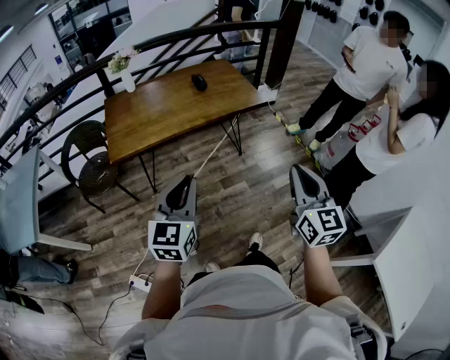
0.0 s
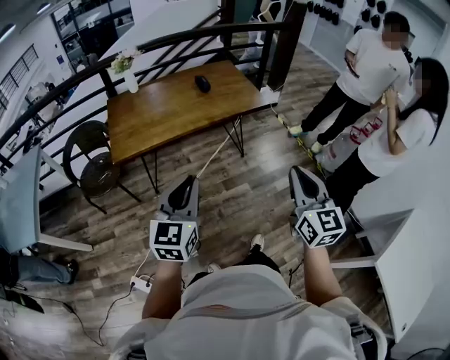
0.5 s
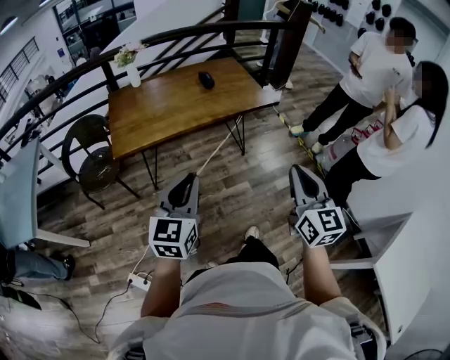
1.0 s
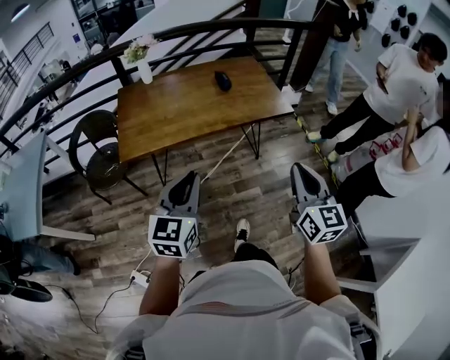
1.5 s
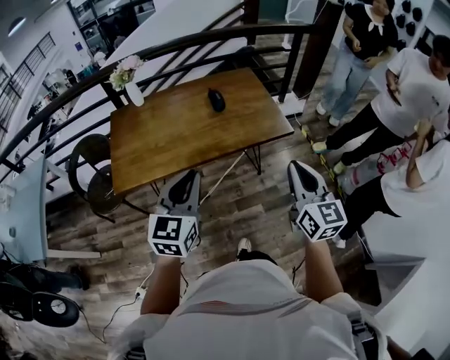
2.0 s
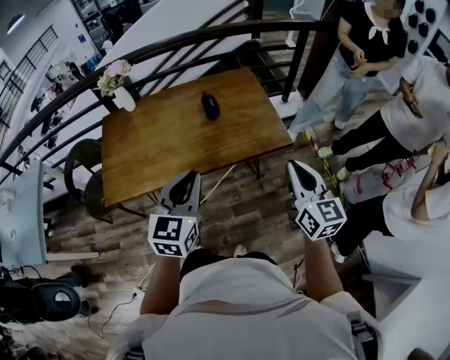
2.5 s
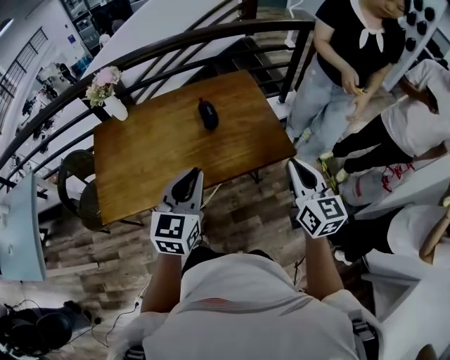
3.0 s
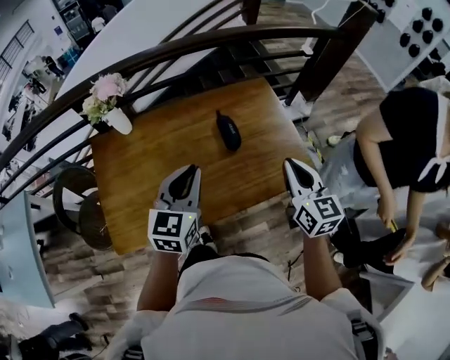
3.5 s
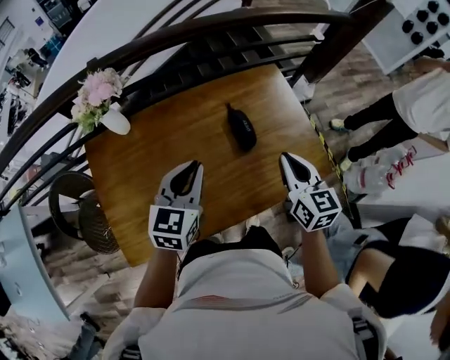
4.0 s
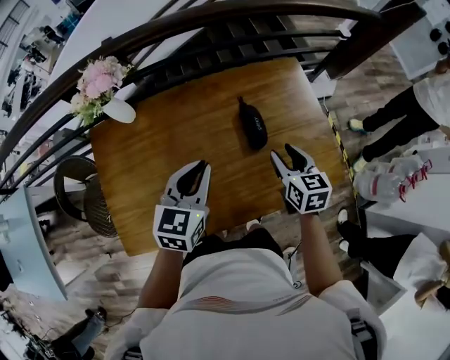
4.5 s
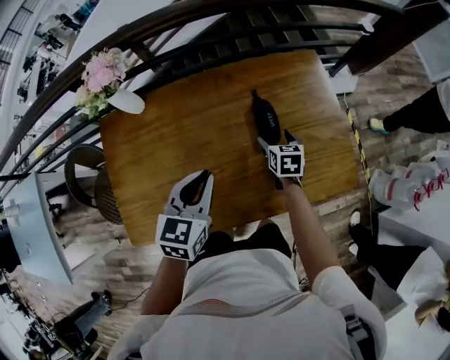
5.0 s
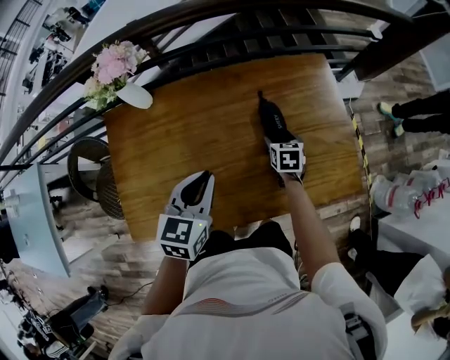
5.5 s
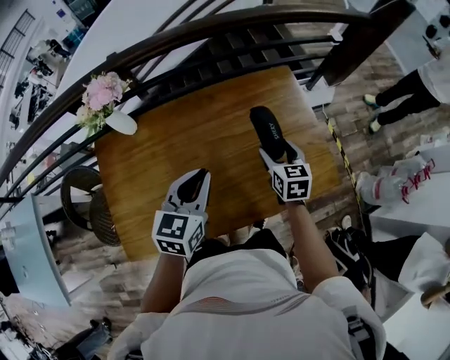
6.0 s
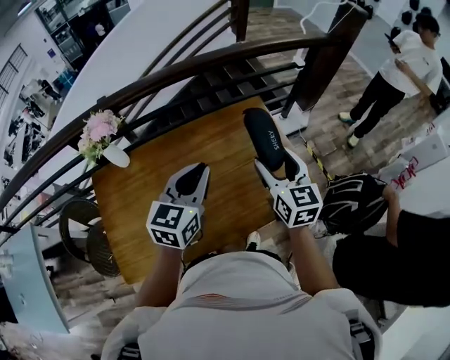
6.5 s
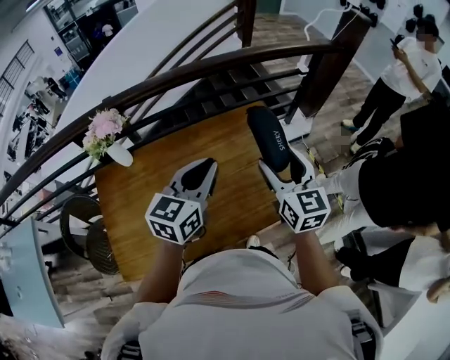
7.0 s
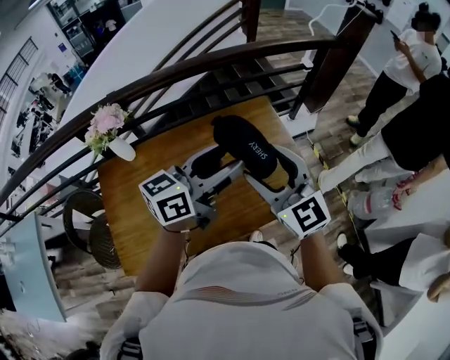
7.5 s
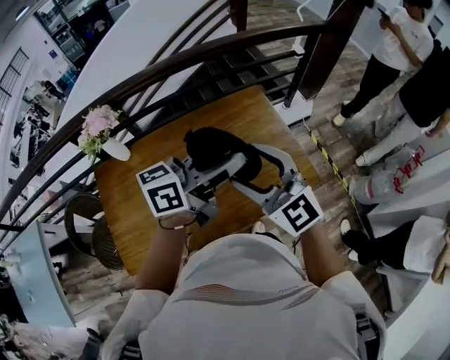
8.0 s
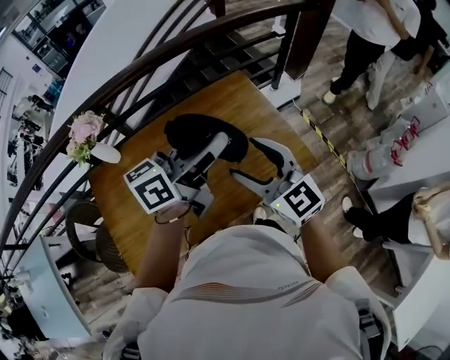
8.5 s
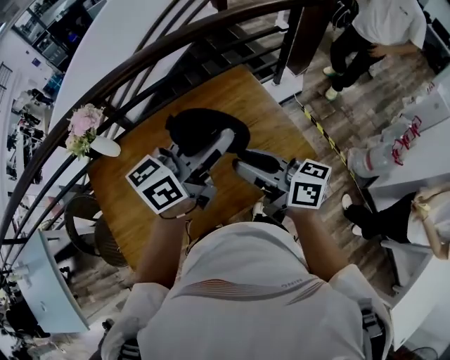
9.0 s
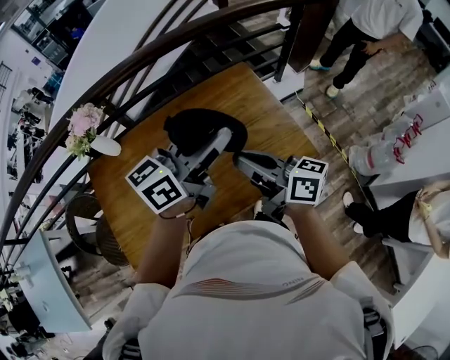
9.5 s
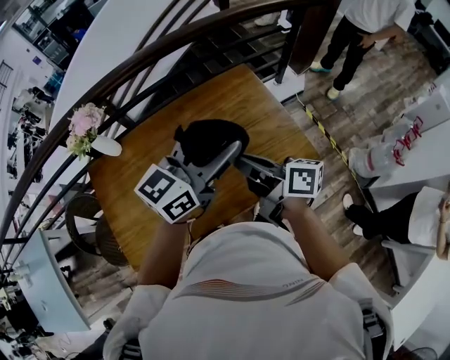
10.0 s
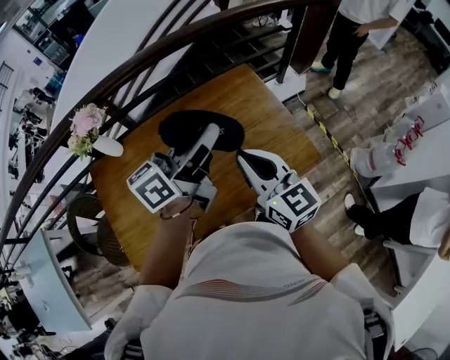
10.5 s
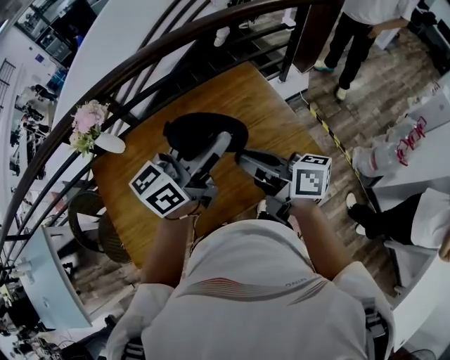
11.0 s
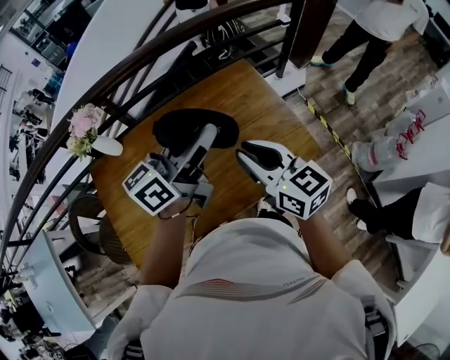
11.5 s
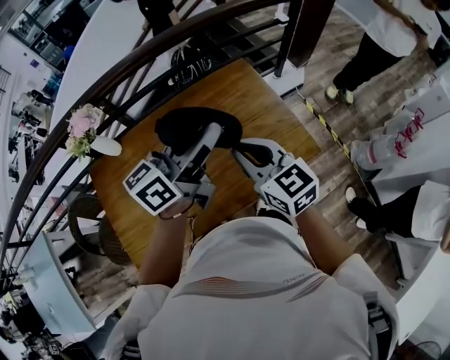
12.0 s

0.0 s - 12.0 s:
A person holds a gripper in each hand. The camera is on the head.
0.0 s - 2.0 s: Both grippers travel together forward, roughly 30 cm.
2.0 s - 4.0 s: The two grippers travel together, forward and to the left, approximately 40 cm.
4.0 s - 6.0 s: The right gripper moves downward and forward, some 15 cm, and opens its fingers.
6.0 s - 8.0 s: The left gripper is displaced upward and to the right by some 25 cm, tilts its fingers roughly 30 degrees upward, and opens its fingers; the right gripper goes roughly 30 cm upward and backward, and rotates approximately 50 degrees.
8.0 s - 10.0 s: The right gripper shifts some 10 cm downward, rolls clockwise, seen from behind, by roughly 80 degrees, and closes up. Meanwhile the left gripper swivels about 20 degrees.
10.0 s - 12.0 s: The right gripper rolls counterclockwise, seen from behind, by some 50 degrees, while the left gripper changes its angle by about 20 degrees.

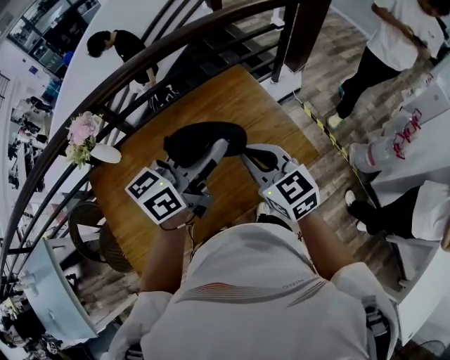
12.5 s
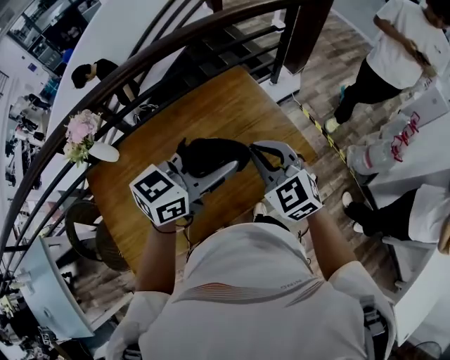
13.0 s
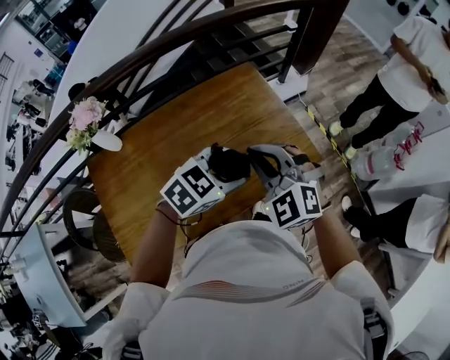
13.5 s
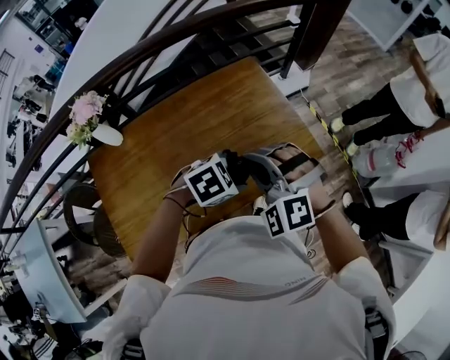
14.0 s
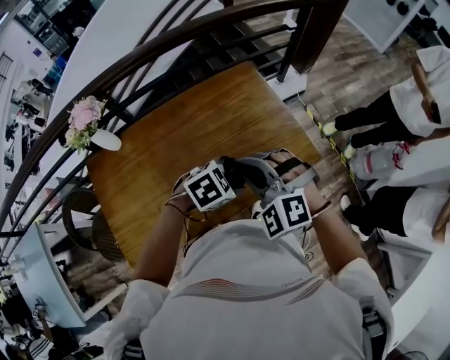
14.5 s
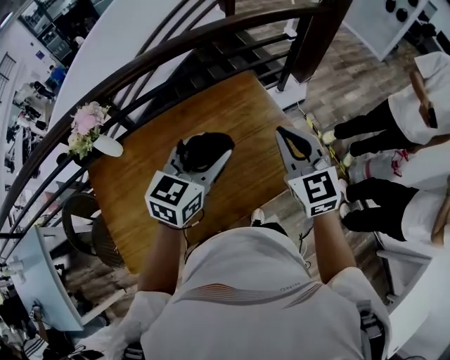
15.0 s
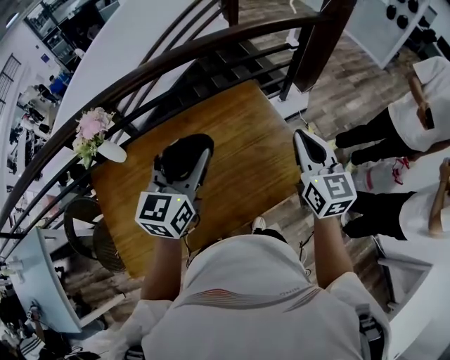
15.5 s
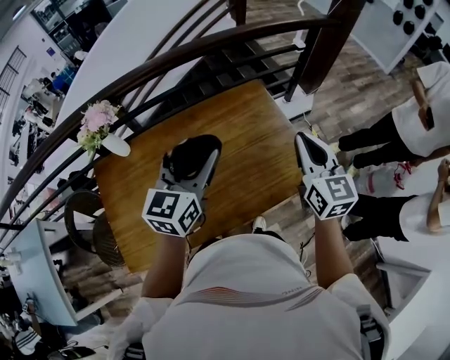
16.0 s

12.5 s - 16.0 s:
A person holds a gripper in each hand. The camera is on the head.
12.5 s - 14.5 s: The left gripper is displaced downward by approximately 20 cm, and points its fingers about 60 degrees further downward; the right gripper shifts by roughly 5 cm, and rolls counterclockwise, seen from behind, by approximately 60 degrees.
14.5 s - 16.0 s: The right gripper travels to the right, forward and upward by roughly 20 cm, and rolls clockwise, seen from behind, by approximately 60 degrees. The left gripper goes roughly 20 cm upward and to the left, and points its fingers approximately 50 degrees further upward.

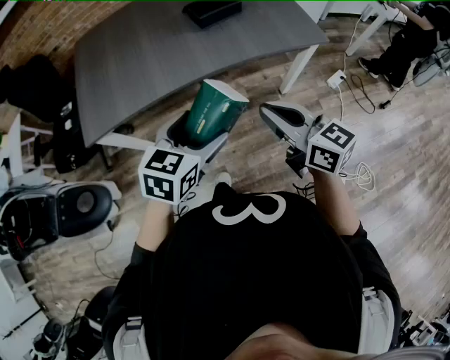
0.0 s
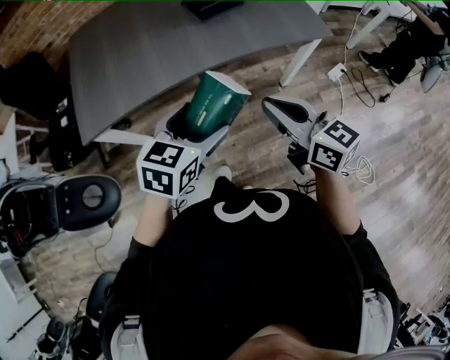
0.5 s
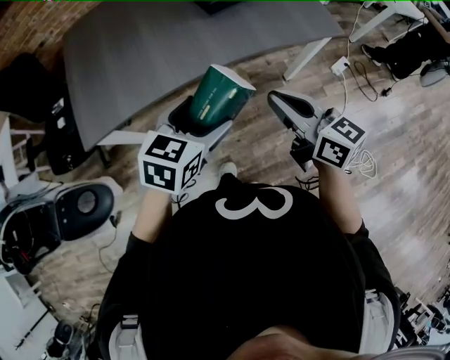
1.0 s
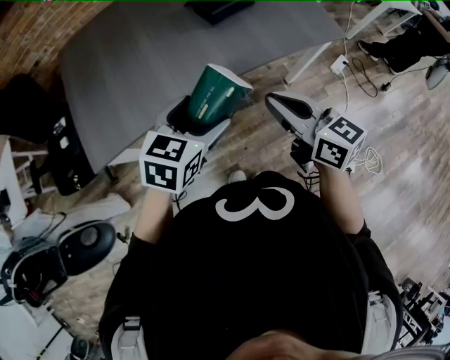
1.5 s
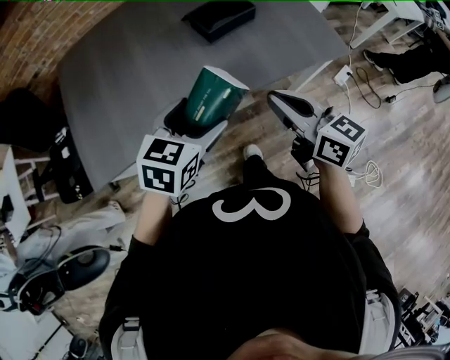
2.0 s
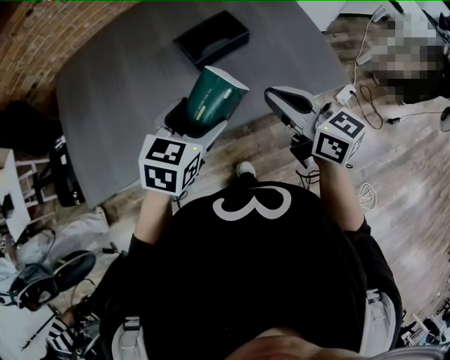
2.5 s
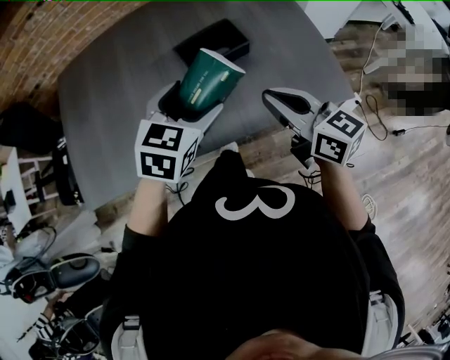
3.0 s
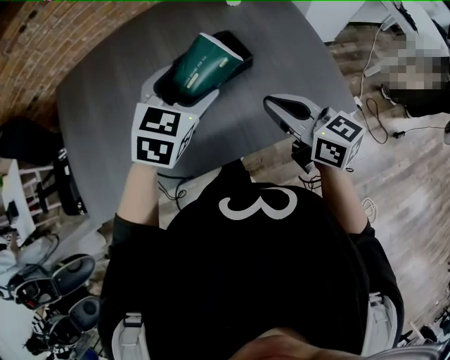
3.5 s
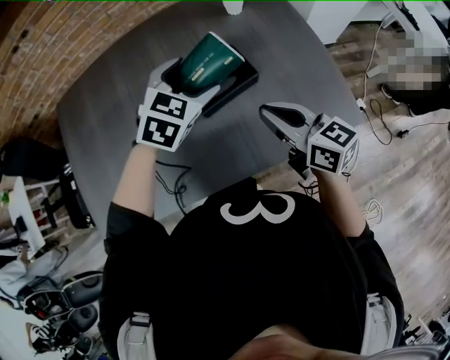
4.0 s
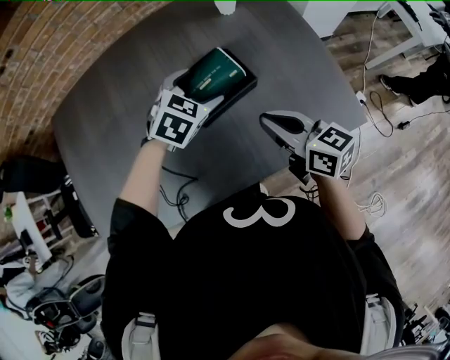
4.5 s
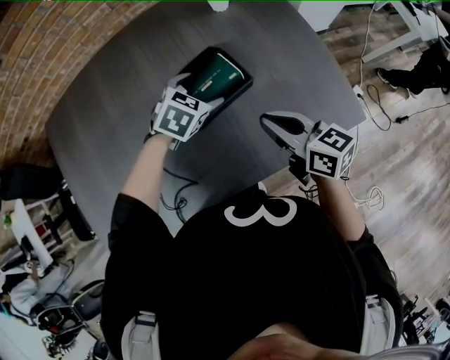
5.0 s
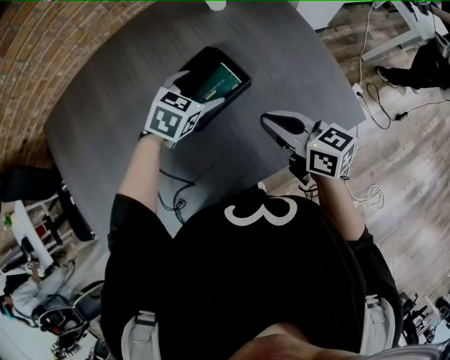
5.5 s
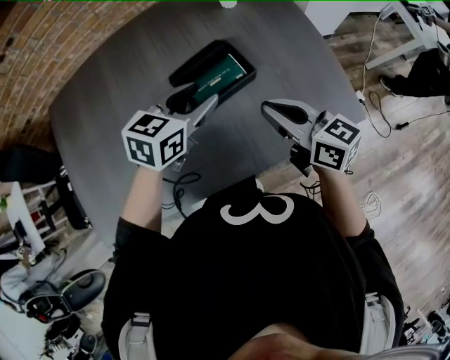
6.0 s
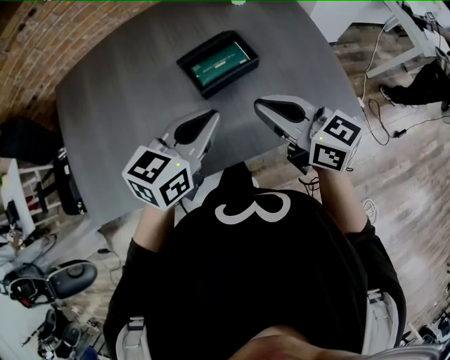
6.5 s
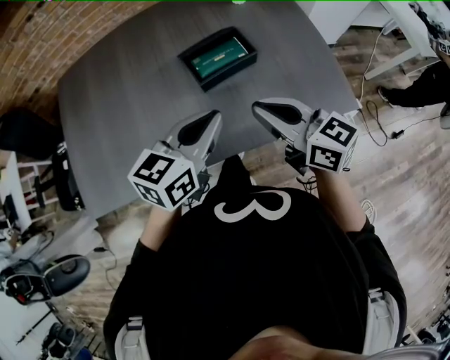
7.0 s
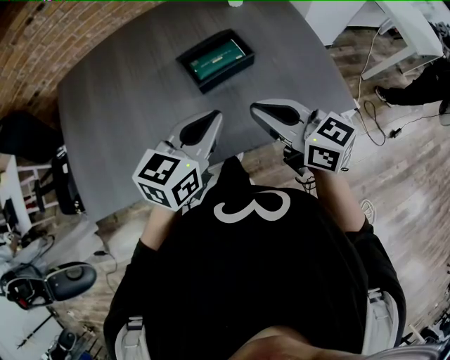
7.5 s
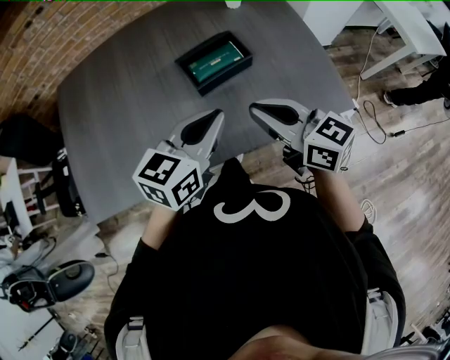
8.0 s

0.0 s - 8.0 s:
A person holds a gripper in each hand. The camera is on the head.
0.0 s - 2.0 s: The grippers both shift forward by some 20 cm.
2.0 s - 4.0 s: The grippers both shift forward by about 25 cm. The left gripper swivels some 20 degrees.
4.0 s - 6.0 s: The left gripper goes downward and returns, about 15 cm each way, swivels approximately 30 degrees, and closes up.
6.0 s - 8.0 s: The left gripper moves backward, approximately 15 cm, and closes its fingers. The right gripper moves backward, approximately 5 cm.

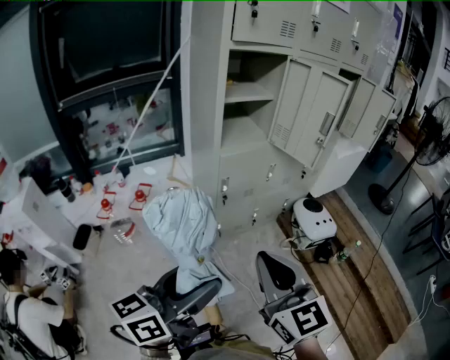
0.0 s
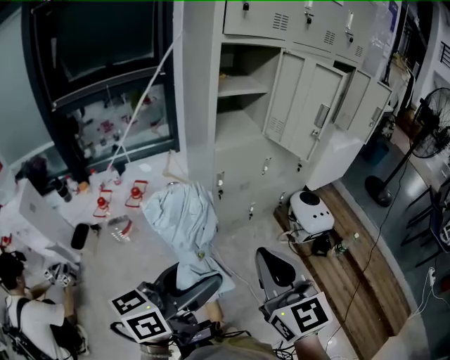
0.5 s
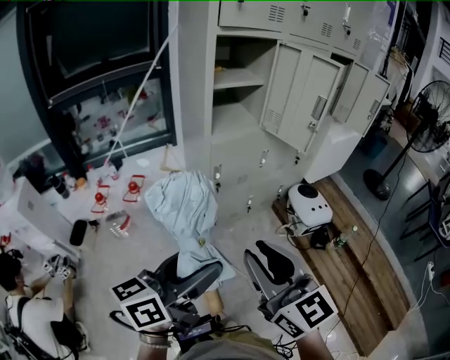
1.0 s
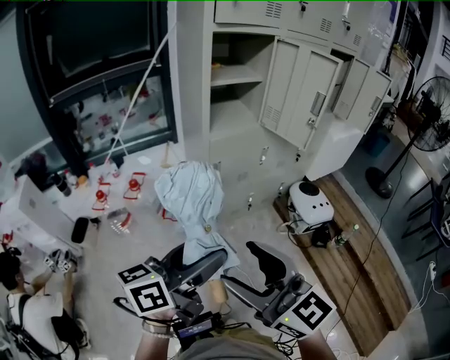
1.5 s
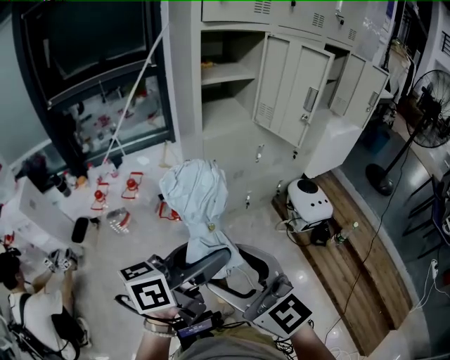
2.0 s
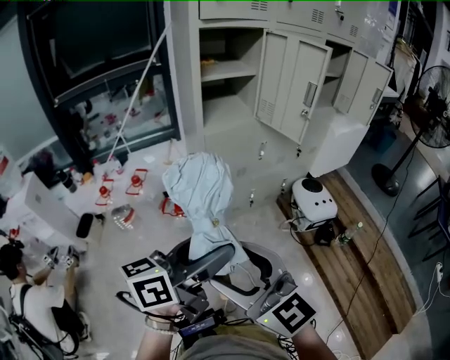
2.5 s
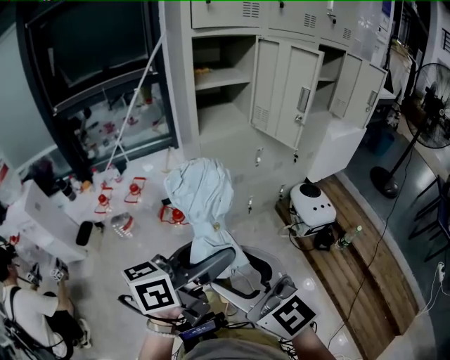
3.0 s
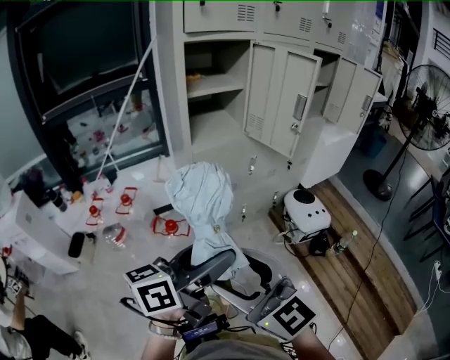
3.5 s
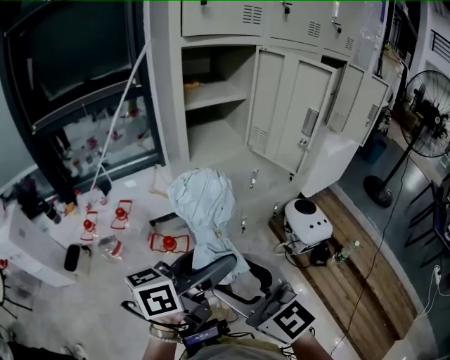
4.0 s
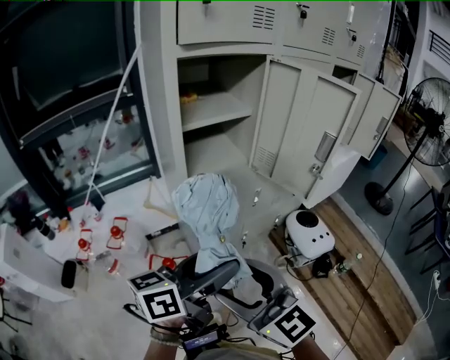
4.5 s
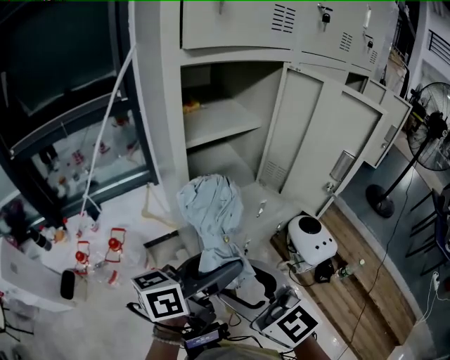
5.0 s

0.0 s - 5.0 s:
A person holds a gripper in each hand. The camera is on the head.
0.0 s - 2.5 s: The left gripper moves to the right, about 10 cm; the right gripper travels backward by about 5 cm, turns by some 30 degrees, and opens.
2.5 s - 5.0 s: Both grippers travel together forward, roughly 30 cm.
